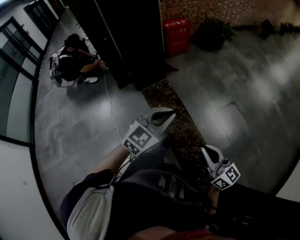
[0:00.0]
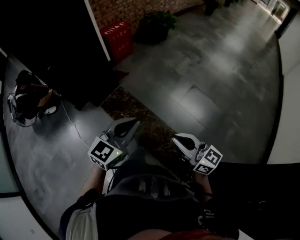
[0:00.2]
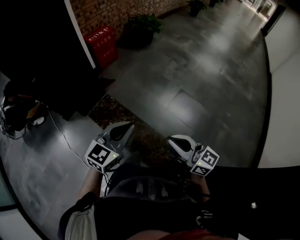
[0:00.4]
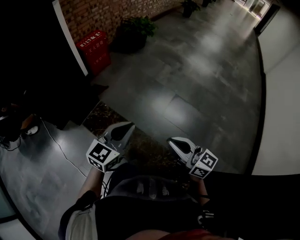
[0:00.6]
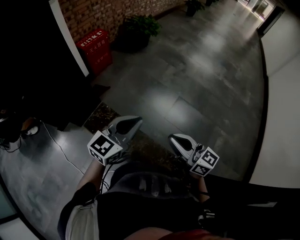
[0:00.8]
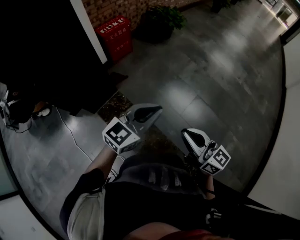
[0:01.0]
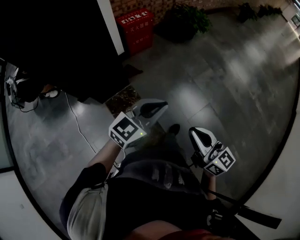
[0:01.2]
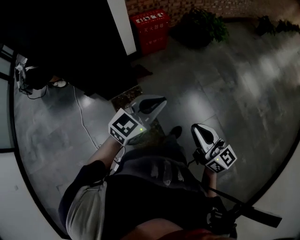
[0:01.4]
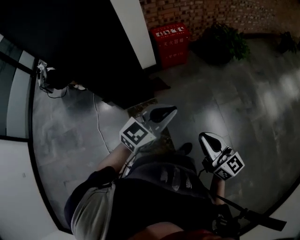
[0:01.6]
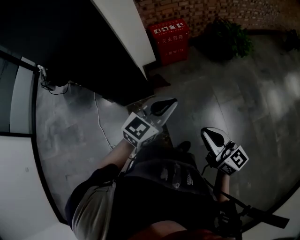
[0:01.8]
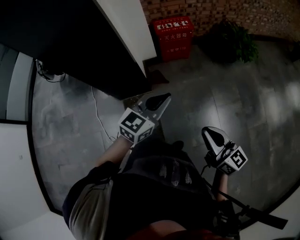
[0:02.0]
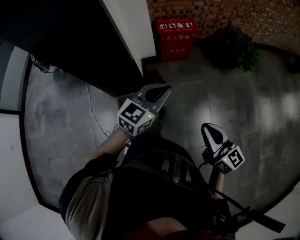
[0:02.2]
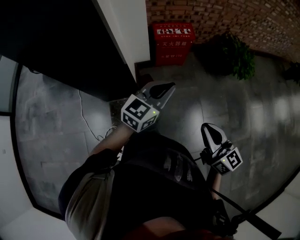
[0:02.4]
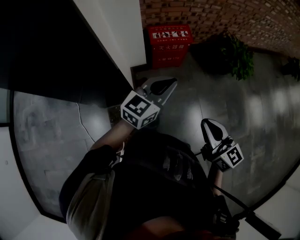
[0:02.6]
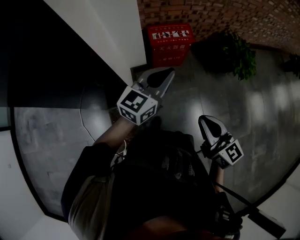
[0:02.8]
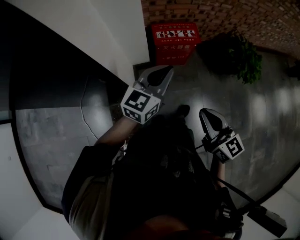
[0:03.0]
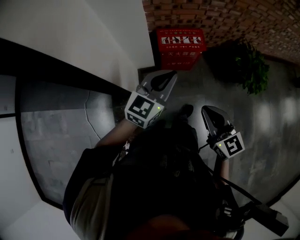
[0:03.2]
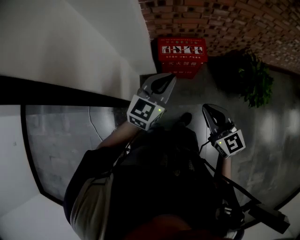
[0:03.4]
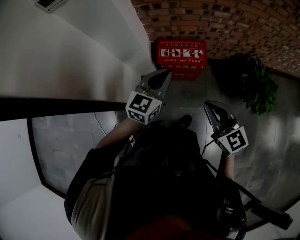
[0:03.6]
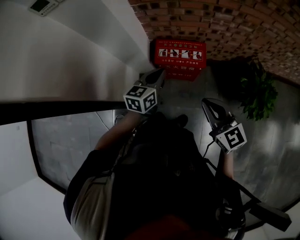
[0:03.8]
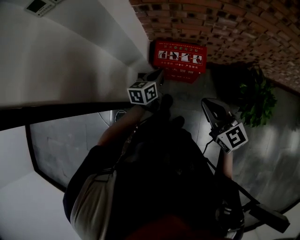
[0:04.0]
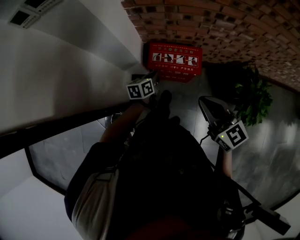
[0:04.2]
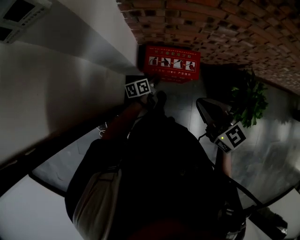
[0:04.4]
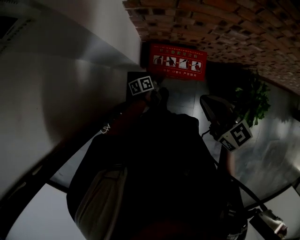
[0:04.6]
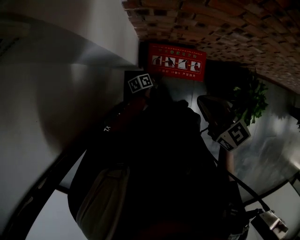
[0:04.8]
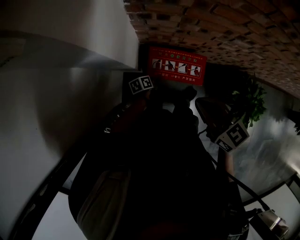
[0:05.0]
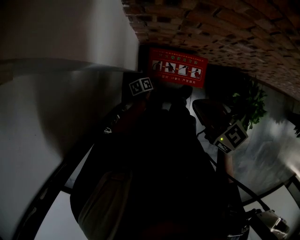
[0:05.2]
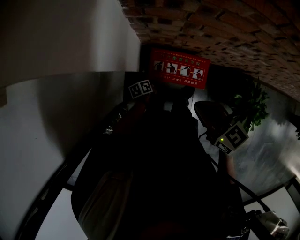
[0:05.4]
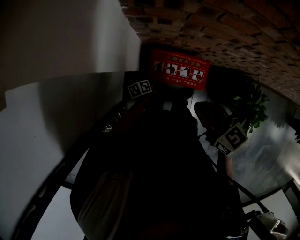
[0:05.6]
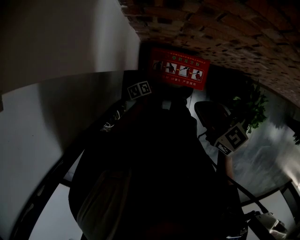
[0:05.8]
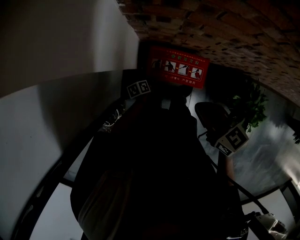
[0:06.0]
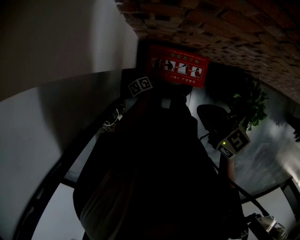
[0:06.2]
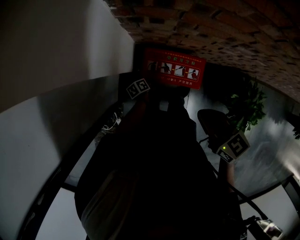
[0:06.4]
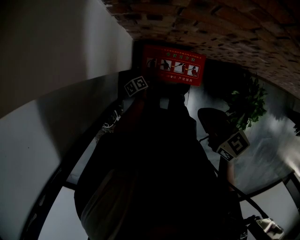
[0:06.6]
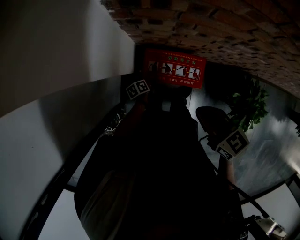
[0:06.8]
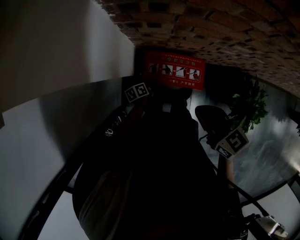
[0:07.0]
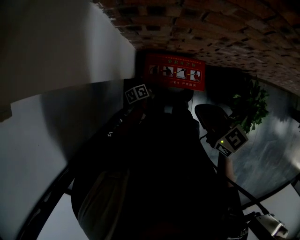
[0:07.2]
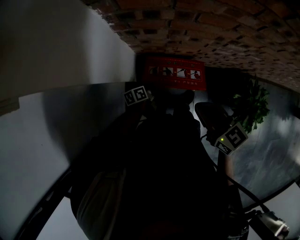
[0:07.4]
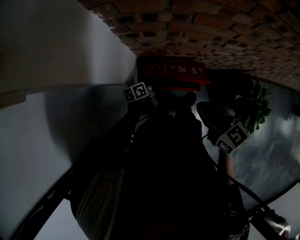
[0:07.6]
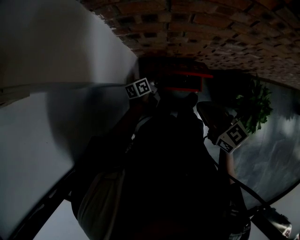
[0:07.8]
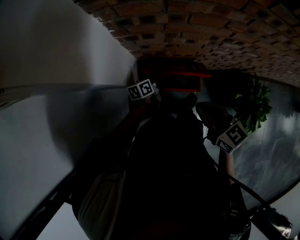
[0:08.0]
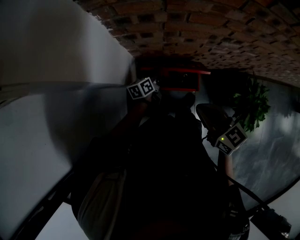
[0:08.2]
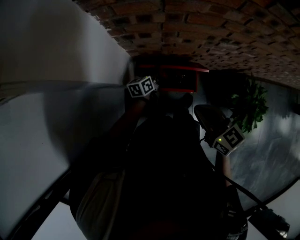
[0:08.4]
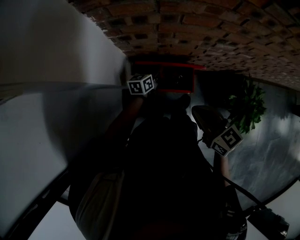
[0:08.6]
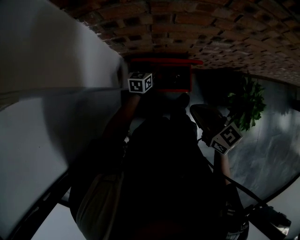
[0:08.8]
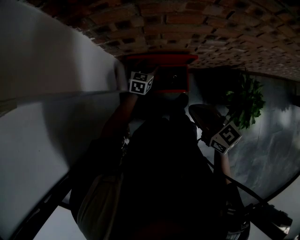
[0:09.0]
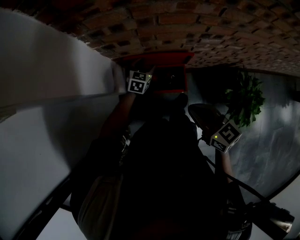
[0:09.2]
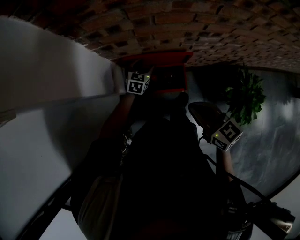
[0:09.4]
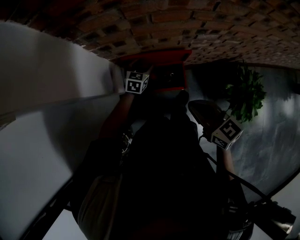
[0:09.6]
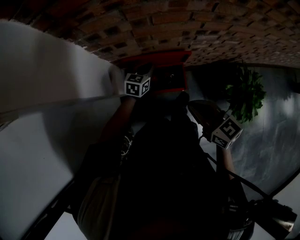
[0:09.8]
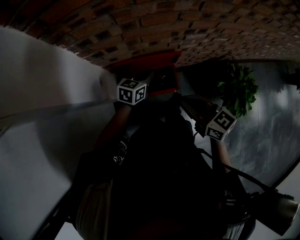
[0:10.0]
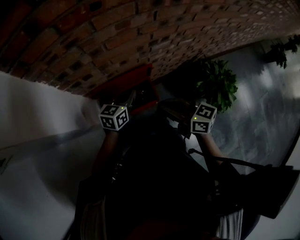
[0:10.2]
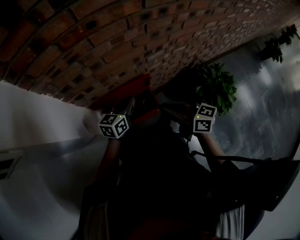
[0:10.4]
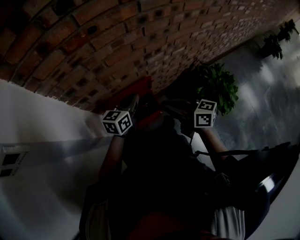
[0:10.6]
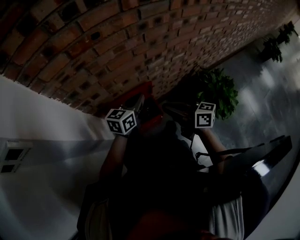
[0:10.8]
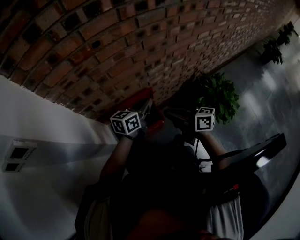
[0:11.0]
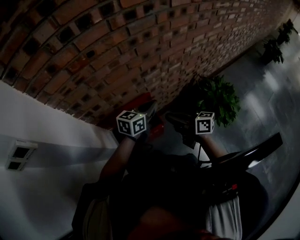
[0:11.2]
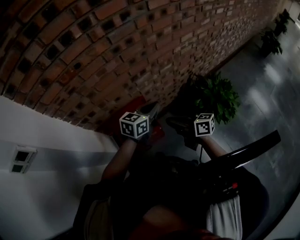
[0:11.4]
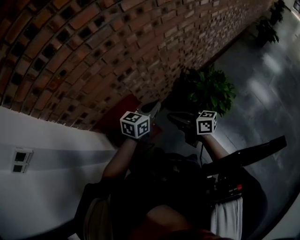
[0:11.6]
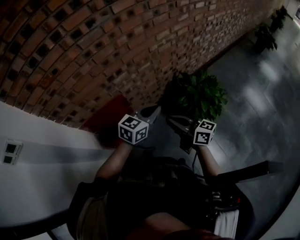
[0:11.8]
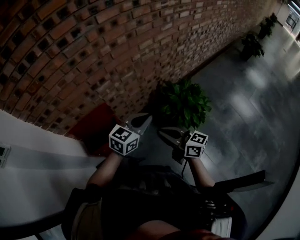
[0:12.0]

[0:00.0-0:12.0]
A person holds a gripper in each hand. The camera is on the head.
0:00.0 to 0:01.6: The pair of grippers is taken some 60 cm.
0:01.6 to 0:03.0: Both grippers are carried forward, about 50 cm. The left gripper turns by some 30 degrees.
0:03.0 to 0:04.4: The left gripper is displaced downward and forward by approximately 40 cm, and twists approximately 50 degrees counterclockwise, seen from behind. The right gripper moves forward and to the right, roughly 40 cm, and turns by about 20 degrees.
0:04.4 to 0:06.0: The left gripper goes about 15 cm downward, turns by about 30 degrees, and opens up, while the right gripper shifts about 15 cm forward and downward.
0:06.0 to 0:07.6: The left gripper moves upward and forward, approximately 15 cm, and changes its angle by about 20 degrees.
0:07.6 to 0:09.0: The left gripper is displaced forward and to the right by roughly 10 cm, and twists approximately 50 degrees clockwise, seen from behind.
0:09.0 to 0:10.4: The right gripper ends up roughly 5 cm from where it was, and changes its angle by approximately 20 degrees; the left gripper travels upward, backward and to the right by roughly 20 cm, swivels some 30 degrees, and closes.
0:10.4 to 0:12.0: The right gripper is displaced to the right and backward by approximately 30 cm; the left gripper travels to the right by approximately 35 cm, and changes its angle by some 30 degrees.

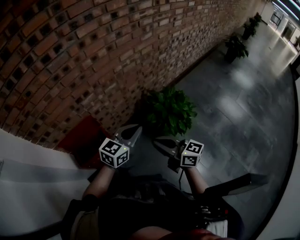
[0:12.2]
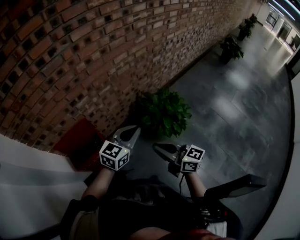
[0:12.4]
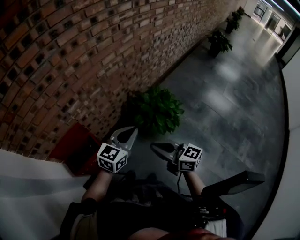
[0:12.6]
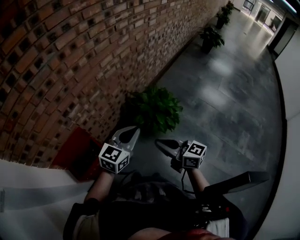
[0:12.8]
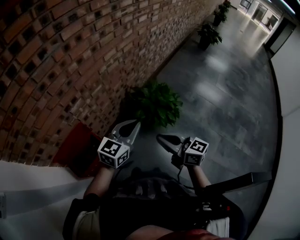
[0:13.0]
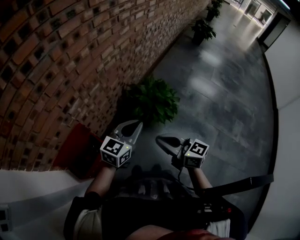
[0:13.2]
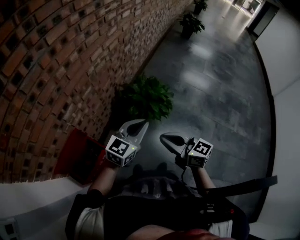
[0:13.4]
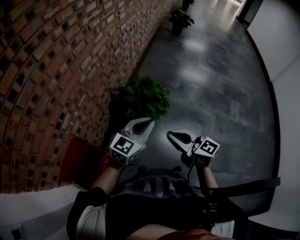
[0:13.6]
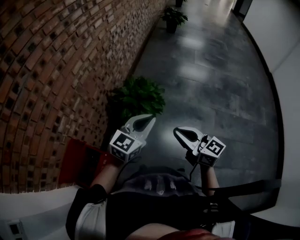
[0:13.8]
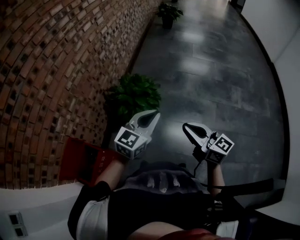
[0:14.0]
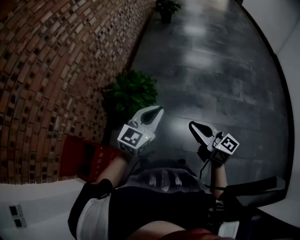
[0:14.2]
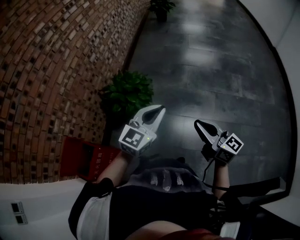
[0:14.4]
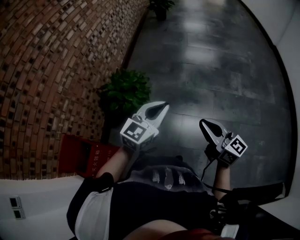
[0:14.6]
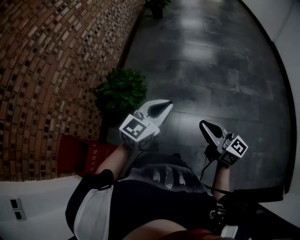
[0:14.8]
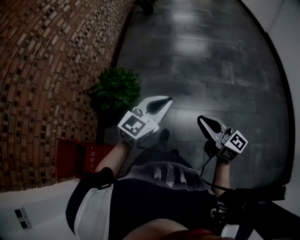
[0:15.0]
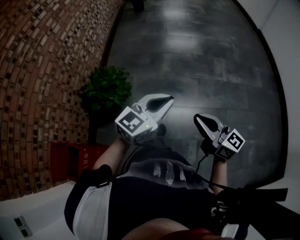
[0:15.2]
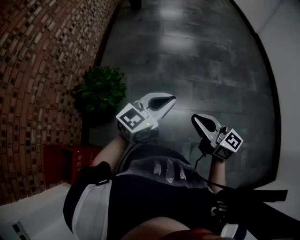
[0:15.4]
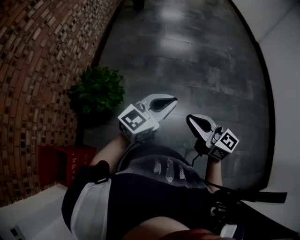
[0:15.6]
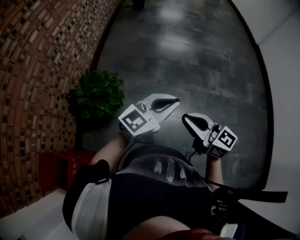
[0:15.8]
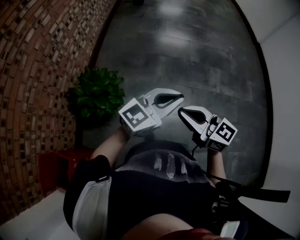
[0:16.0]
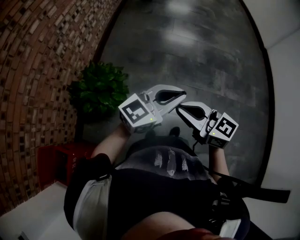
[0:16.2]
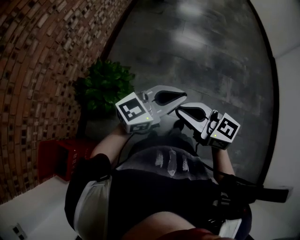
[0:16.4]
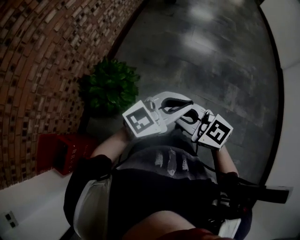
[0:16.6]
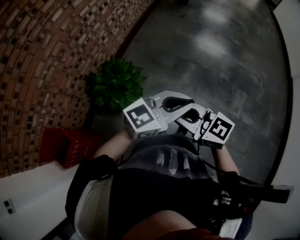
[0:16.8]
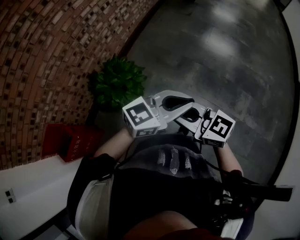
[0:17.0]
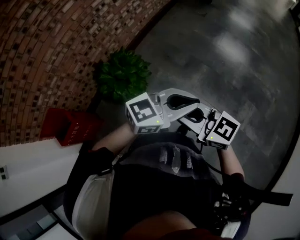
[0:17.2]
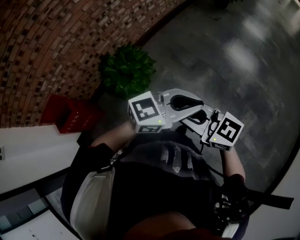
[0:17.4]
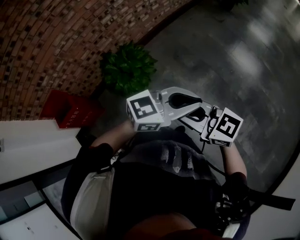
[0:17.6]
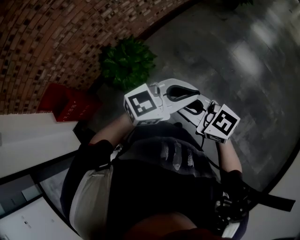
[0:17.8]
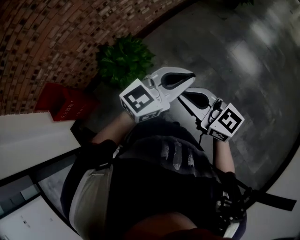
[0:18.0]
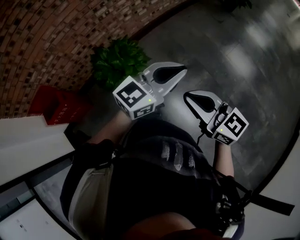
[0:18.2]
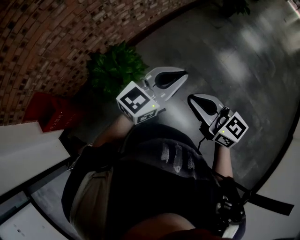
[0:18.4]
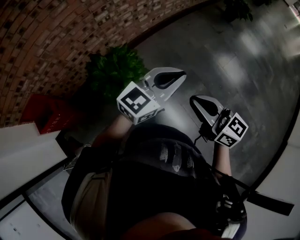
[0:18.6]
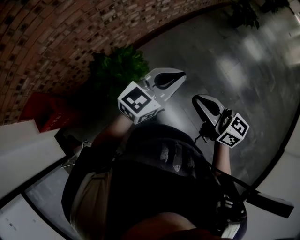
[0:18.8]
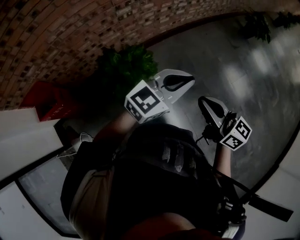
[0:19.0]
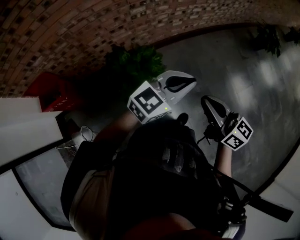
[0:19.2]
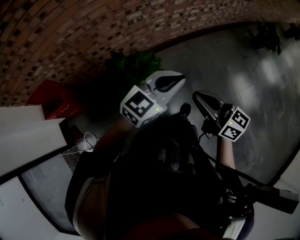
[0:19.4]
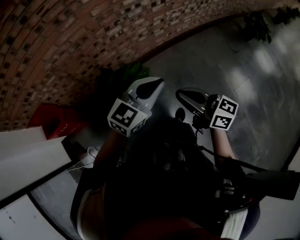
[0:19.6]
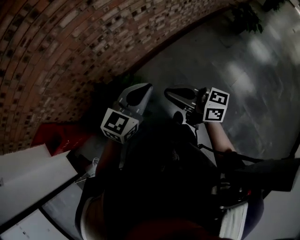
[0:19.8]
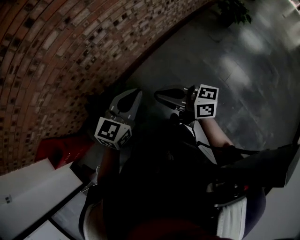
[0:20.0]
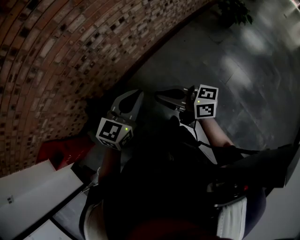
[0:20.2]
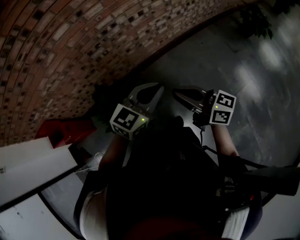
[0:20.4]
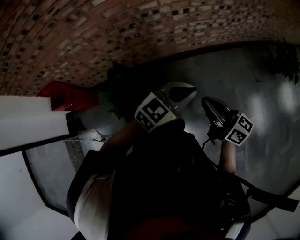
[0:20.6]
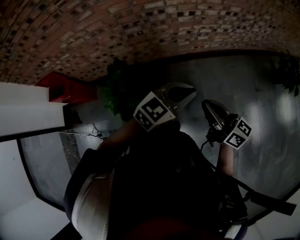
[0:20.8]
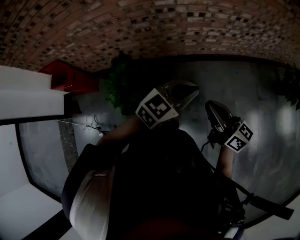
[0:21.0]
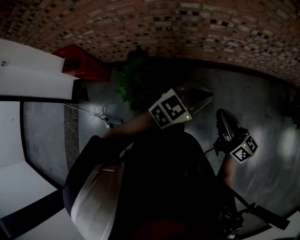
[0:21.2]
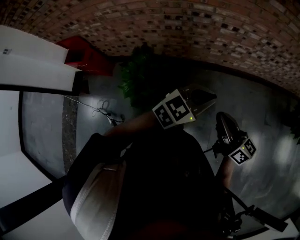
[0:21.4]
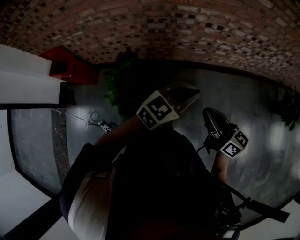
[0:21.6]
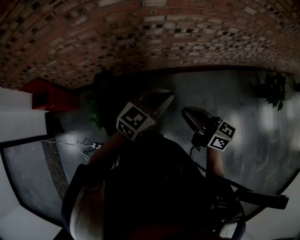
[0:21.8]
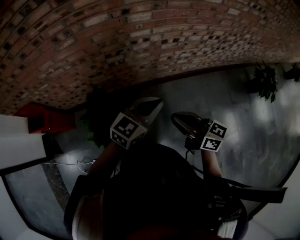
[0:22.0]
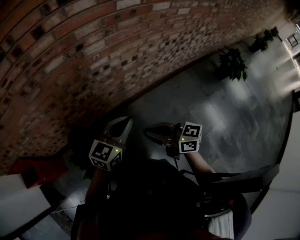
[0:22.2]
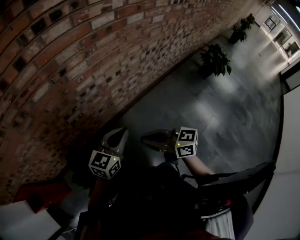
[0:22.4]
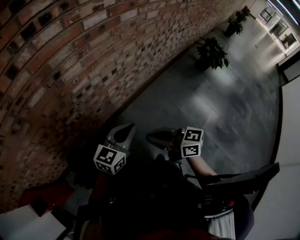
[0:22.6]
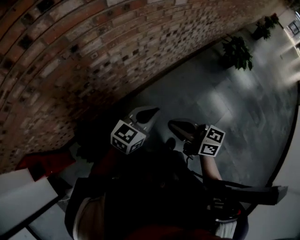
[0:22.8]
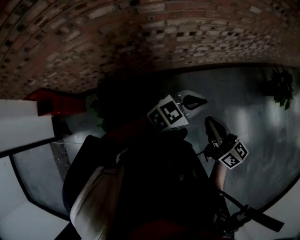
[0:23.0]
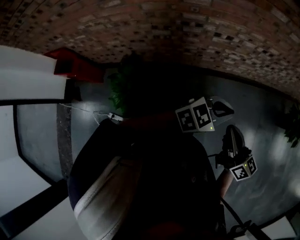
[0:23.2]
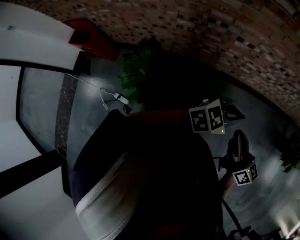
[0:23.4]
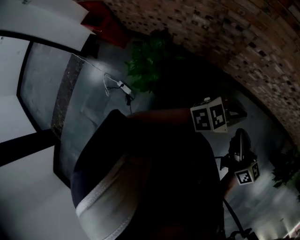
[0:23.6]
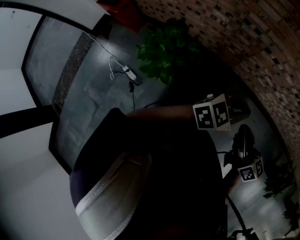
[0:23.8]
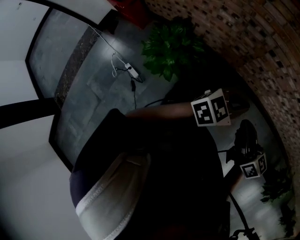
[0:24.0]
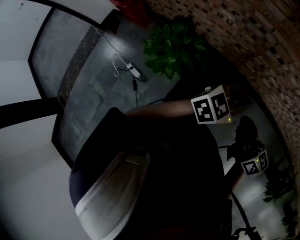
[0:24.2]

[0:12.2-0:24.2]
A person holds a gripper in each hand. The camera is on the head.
0:12.2 to 0:13.8: The left gripper moves approximately 15 cm, and changes its angle by about 40 degrees, while the right gripper ends up roughly 15 cm from where it was, and turns by roughly 50 degrees.
0:13.8 to 0:15.2: Both grippers are carried to the right, roughly 40 cm. The left gripper changes its angle by some 20 degrees.
0:15.2 to 0:16.6: The right gripper ends up roughly 30 cm from where it was, and changes its angle by about 40 degrees; the left gripper ends up approximately 25 cm from where it was.
0:16.6 to 0:18.2: The left gripper moves about 25 cm, and turns by roughly 40 degrees. The right gripper shifts by about 25 cm.
0:18.2 to 0:19.8: Both grippers move forward, roughly 35 cm. The left gripper swivels some 30 degrees, while the right gripper swivels approximately 30 degrees.
0:19.8 to 0:21.2: The grippers both shift to the right and forward by some 20 cm.
0:21.2 to 0:22.6: Both grippers travel together forward and to the left, some 15 cm.
0:22.6 to 0:24.2: The left gripper moves some 10 cm, and turns by approximately 40 degrees. The right gripper changes place by some 10 cm, and changes its angle by about 40 degrees.
